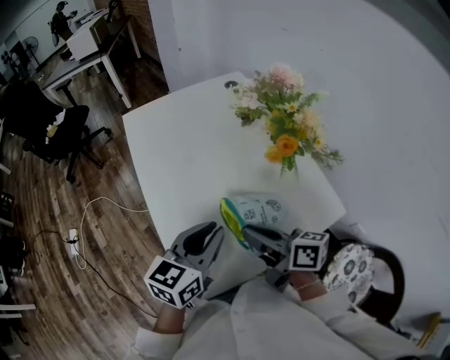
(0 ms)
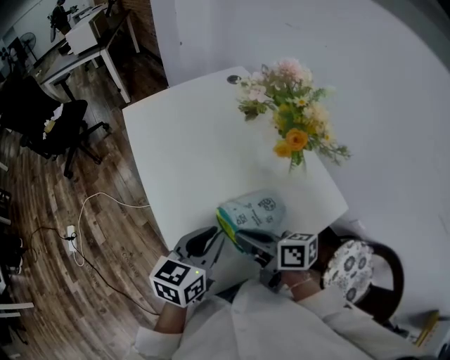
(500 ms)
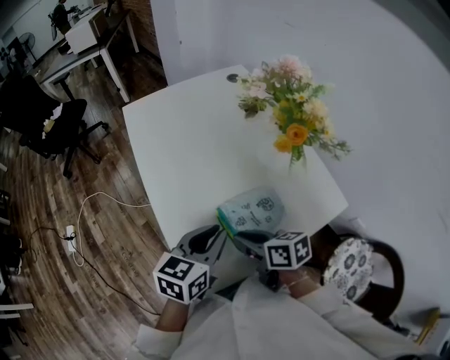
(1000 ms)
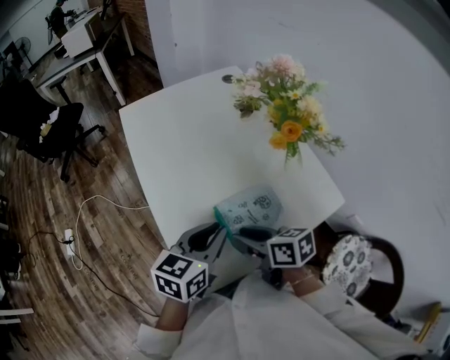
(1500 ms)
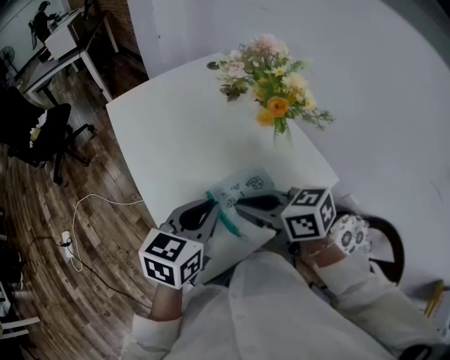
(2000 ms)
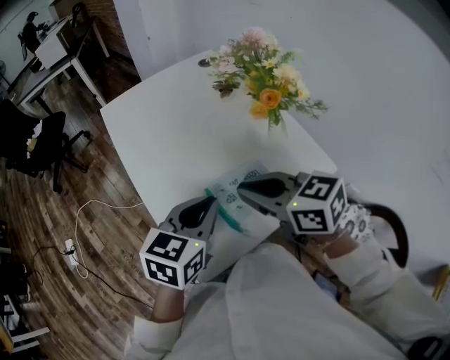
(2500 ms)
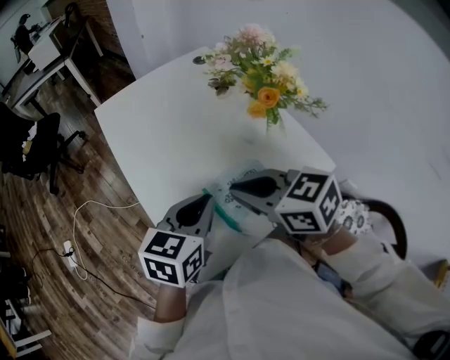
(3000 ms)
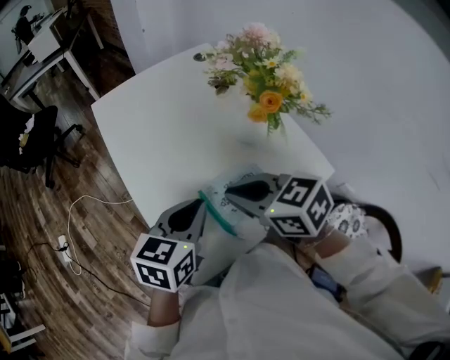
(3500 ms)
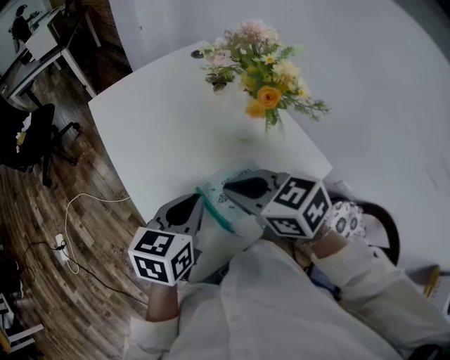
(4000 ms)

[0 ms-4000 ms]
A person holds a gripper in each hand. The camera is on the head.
0 ms to 2000 ms: The right gripper moves approximately 10 cm downward and comes back, and swivels roughly 30 degrees.
2000 ms to 4000 ms: There are only small adjustments of the grippers.

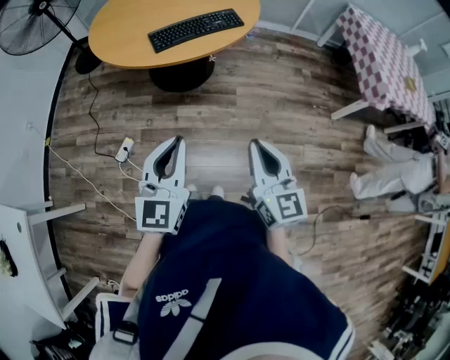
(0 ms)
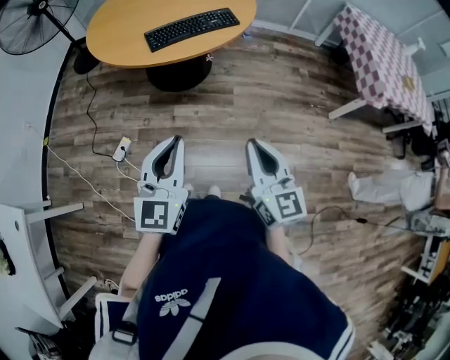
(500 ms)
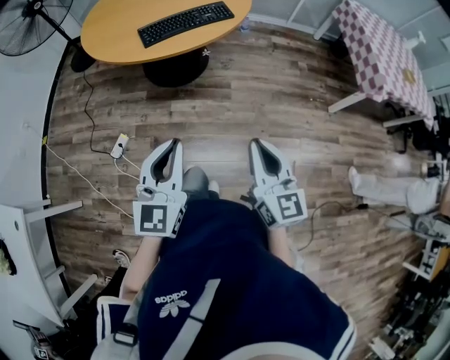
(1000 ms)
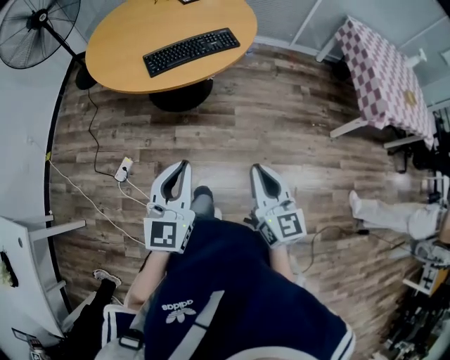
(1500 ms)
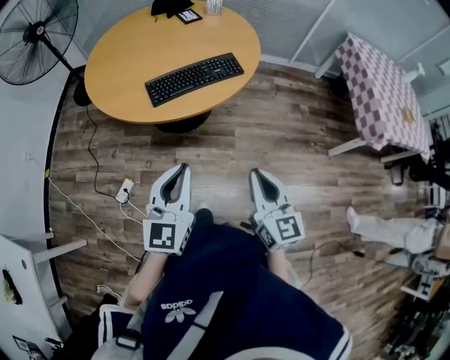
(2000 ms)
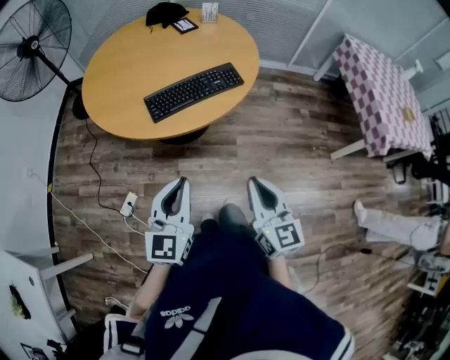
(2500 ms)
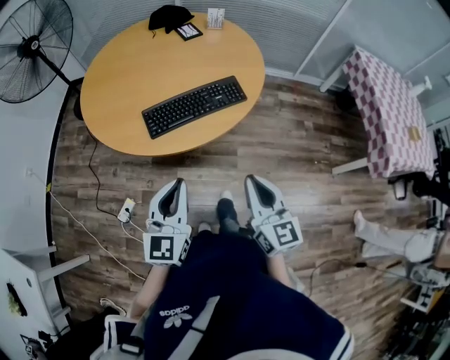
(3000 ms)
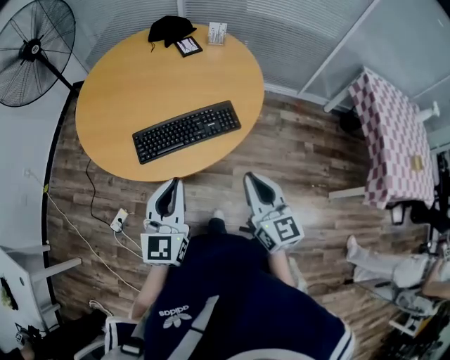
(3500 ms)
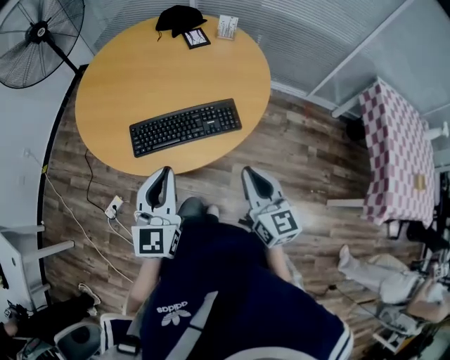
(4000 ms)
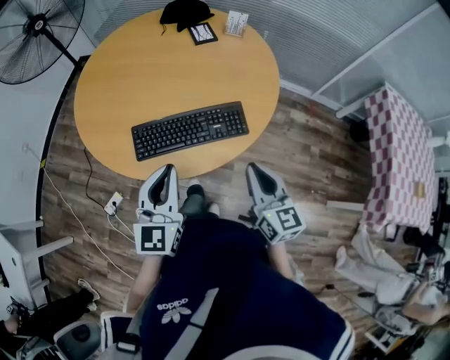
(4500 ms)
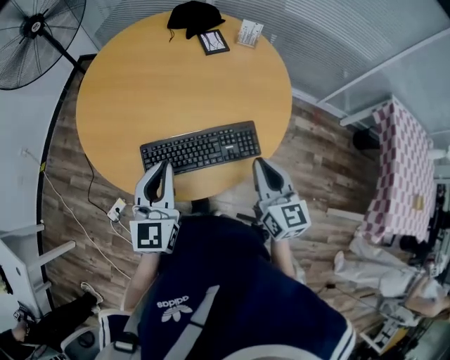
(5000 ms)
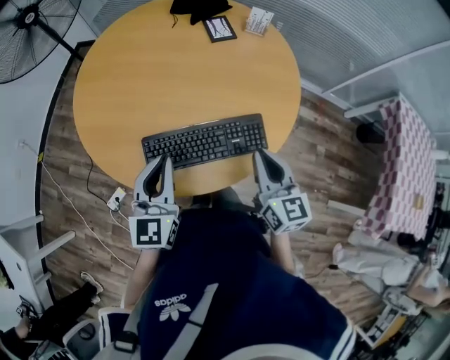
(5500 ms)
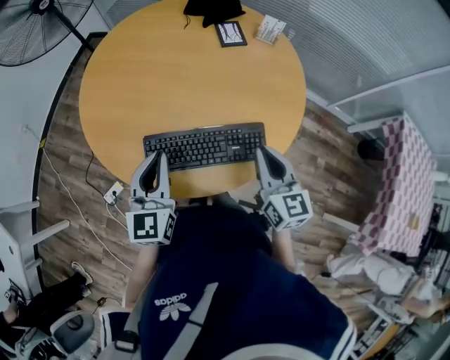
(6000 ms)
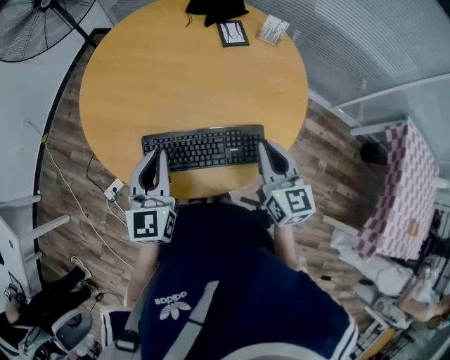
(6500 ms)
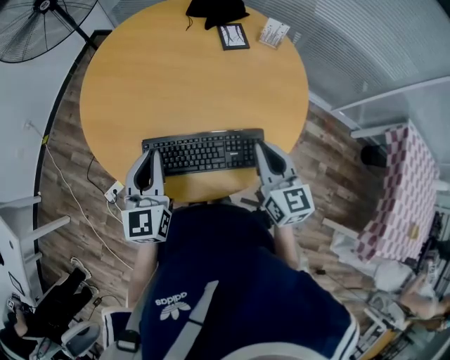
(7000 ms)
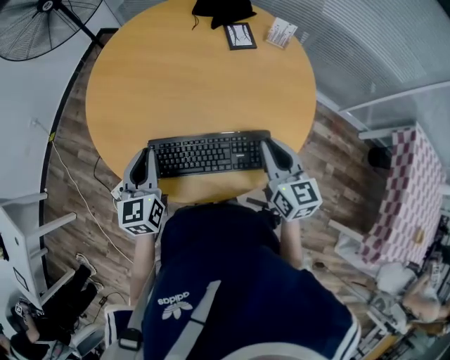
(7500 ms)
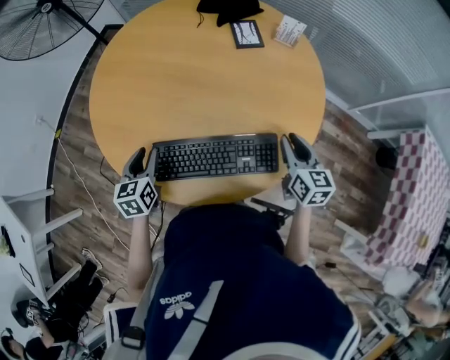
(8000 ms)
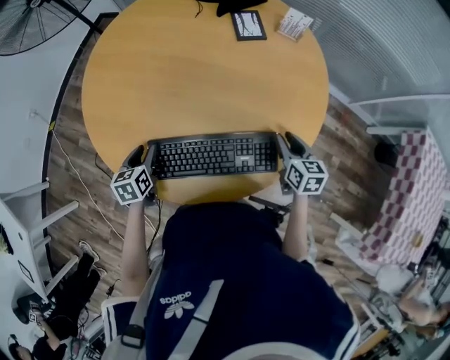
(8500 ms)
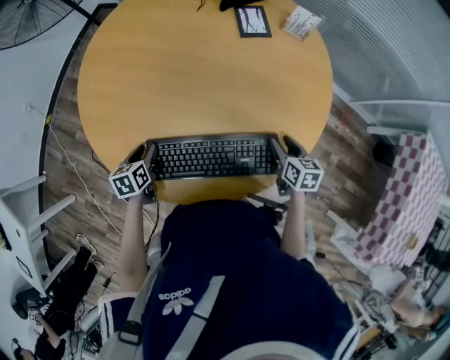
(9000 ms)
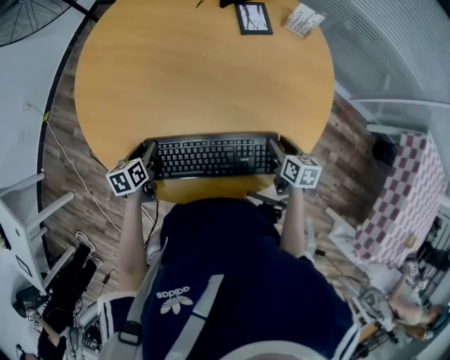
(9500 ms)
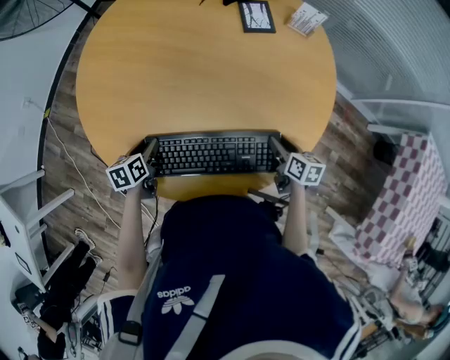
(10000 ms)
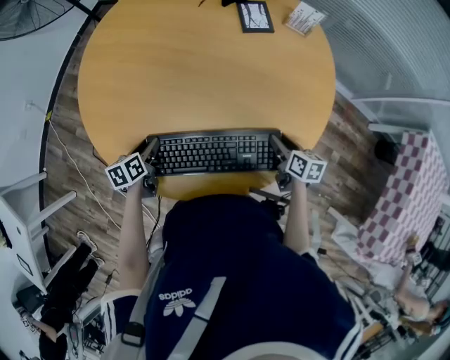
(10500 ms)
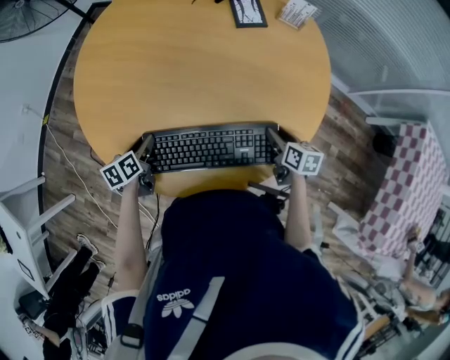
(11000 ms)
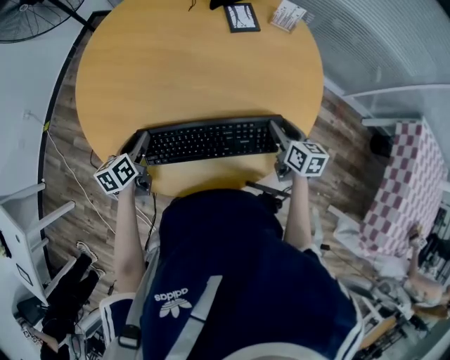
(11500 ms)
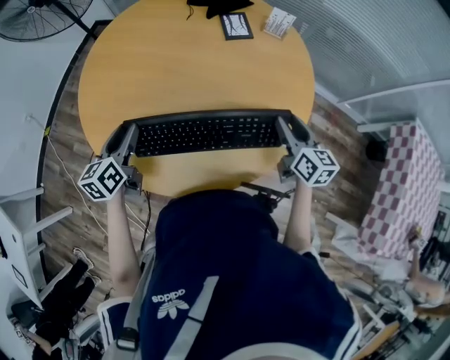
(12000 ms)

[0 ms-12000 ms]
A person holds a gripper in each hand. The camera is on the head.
0 ms to 2000 ms: The two grippers go some 15 cm forward.
2000 ms to 4000 ms: The grippers both shift forward by approximately 30 cm.
4000 ms to 6000 ms: The right gripper heads forward, covering roughly 20 cm; the left gripper goes about 20 cm forward and to the left.
6000 ms to 8000 ms: The left gripper heads downward, to the left and forward, covering some 15 cm, swivels roughly 30 degrees, and opens its fingers, while the right gripper travels to the right, downward and forward by some 15 cm.
8000 ms to 10000 ms: The grippers both shift downward by approximately 15 cm. The left gripper turns by approximately 30 degrees. Meanwhile the right gripper rotates approximately 30 degrees.
10000 ms to 12000 ms: Both grippers move upward, some 20 cm. The left gripper swivels some 30 degrees. The right gripper rotates some 30 degrees.

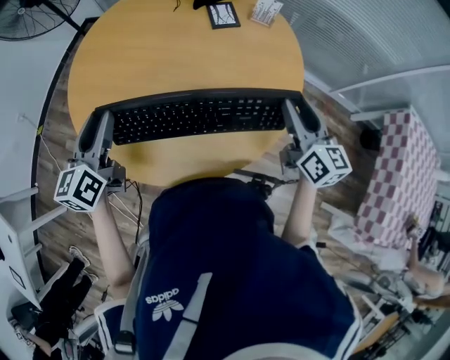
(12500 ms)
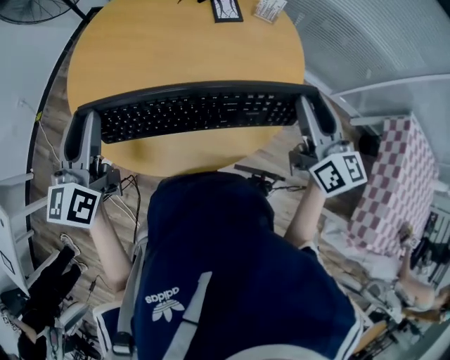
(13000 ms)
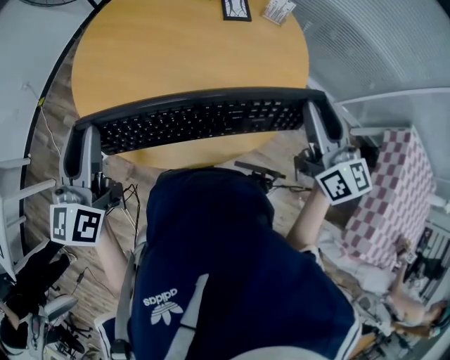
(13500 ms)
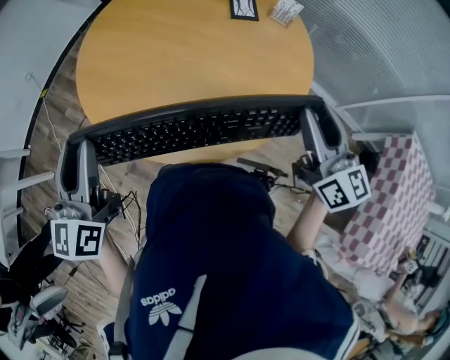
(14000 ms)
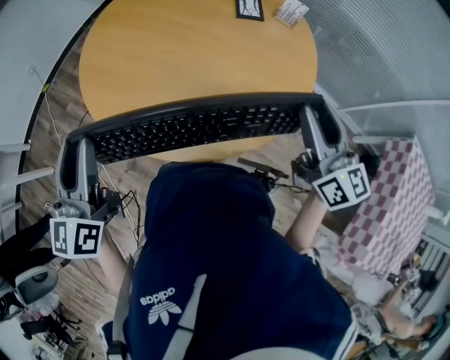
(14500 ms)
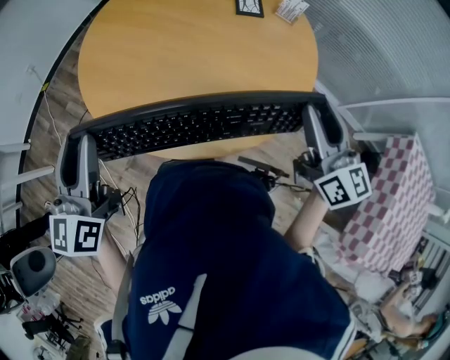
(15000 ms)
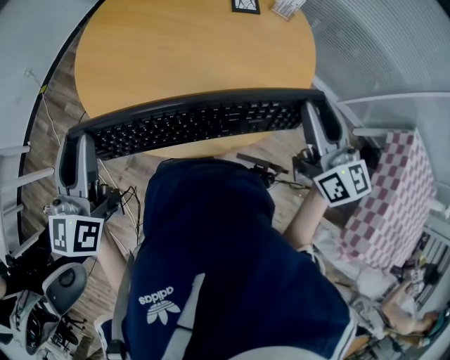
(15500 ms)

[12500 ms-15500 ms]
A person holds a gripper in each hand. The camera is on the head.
12500 ms to 14000 ms: The right gripper shifts roughly 10 cm upward and backward; the left gripper goes roughly 20 cm backward and upward.
14000 ms to 15500 ms: Both grippers stay put.

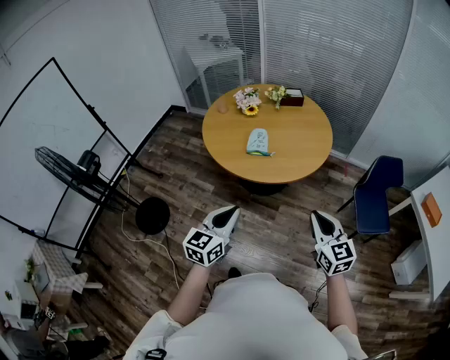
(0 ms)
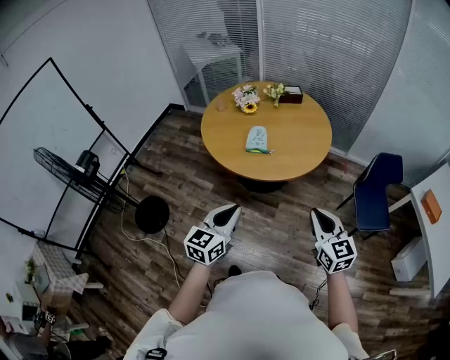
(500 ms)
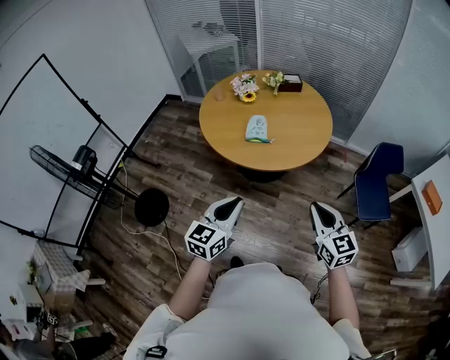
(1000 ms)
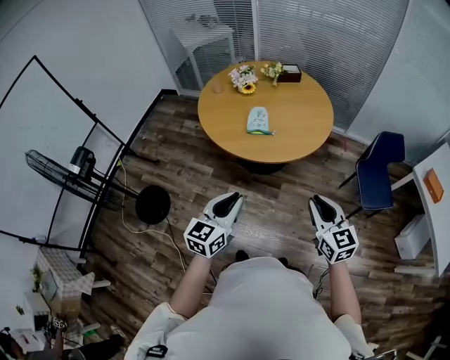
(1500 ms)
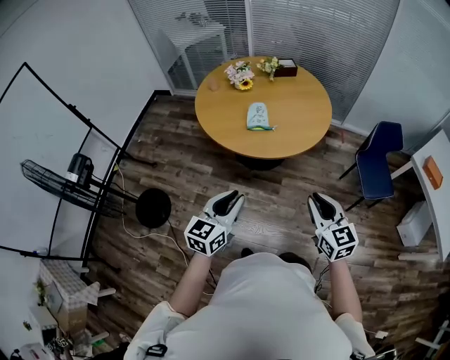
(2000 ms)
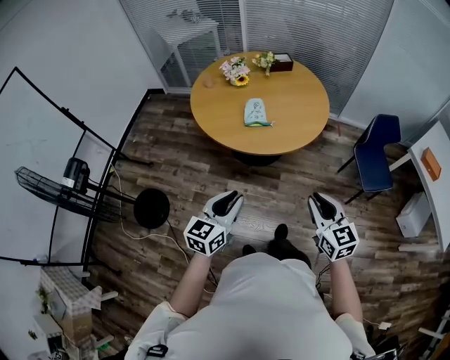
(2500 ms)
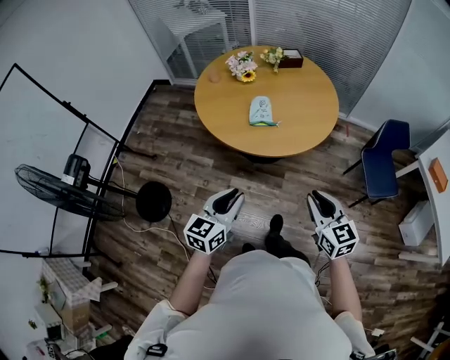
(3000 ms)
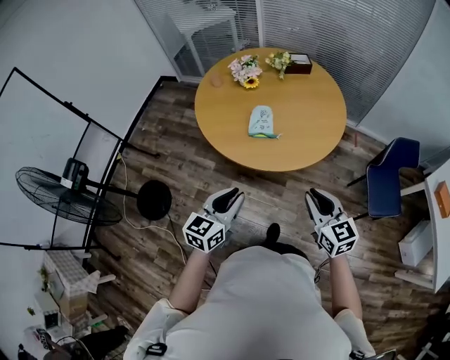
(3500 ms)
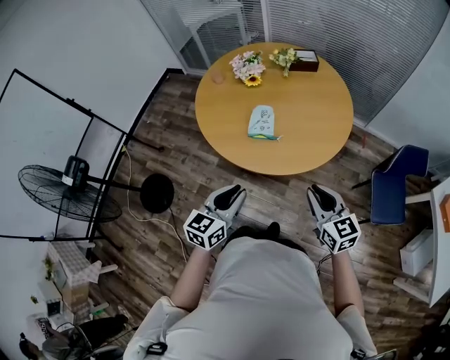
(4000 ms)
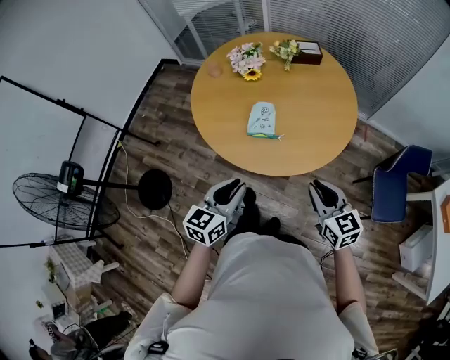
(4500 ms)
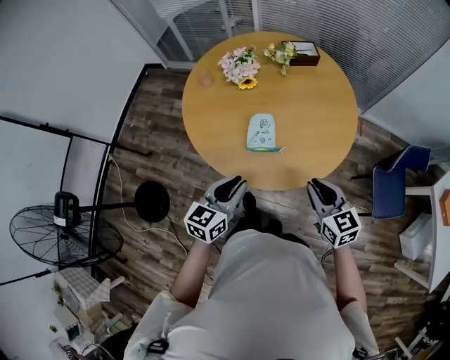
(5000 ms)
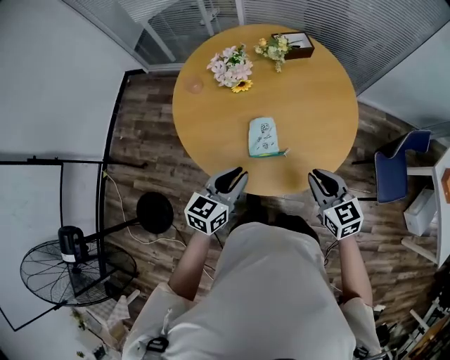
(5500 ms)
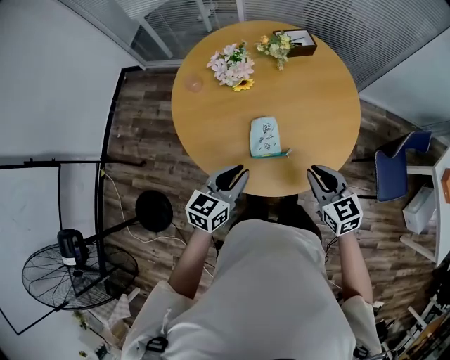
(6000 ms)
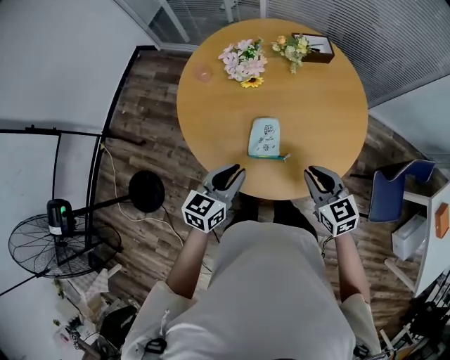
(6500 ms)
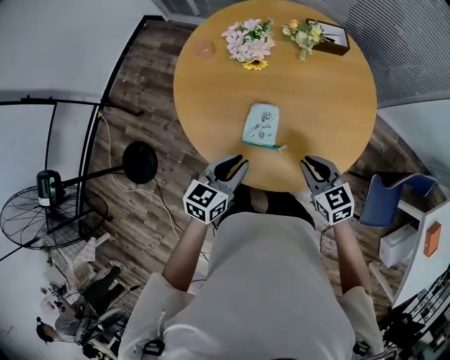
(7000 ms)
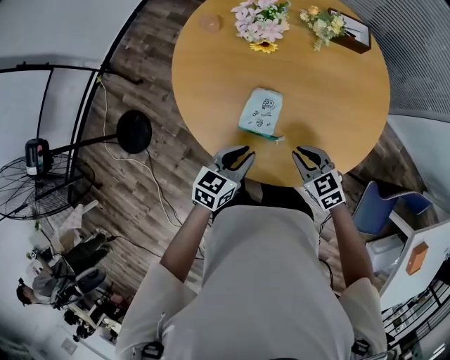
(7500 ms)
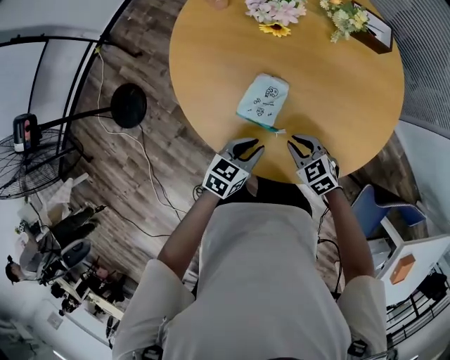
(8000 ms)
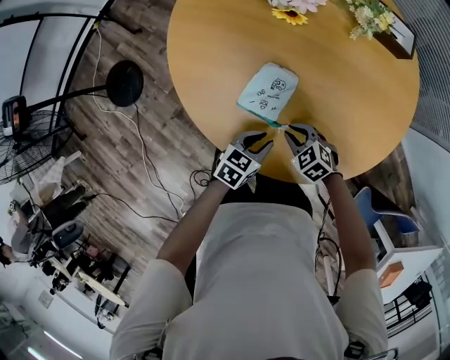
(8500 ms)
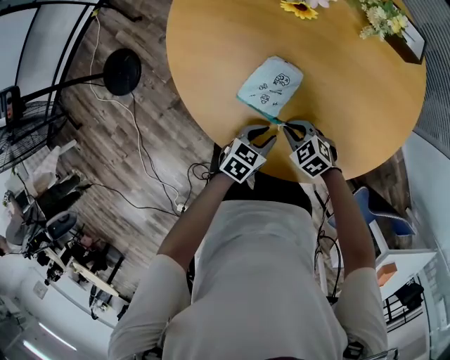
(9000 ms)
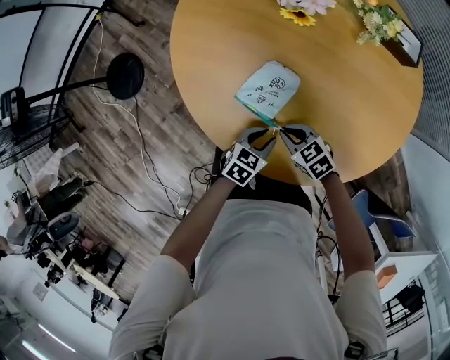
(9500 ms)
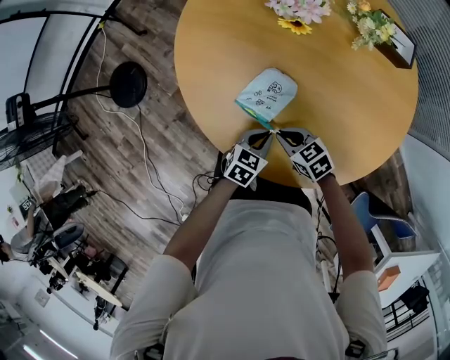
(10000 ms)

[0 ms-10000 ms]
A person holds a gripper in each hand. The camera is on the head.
0 ms to 2000 ms: Both grippers travel together to the left, about 10 cm.
2000 ms to 4000 ms: The grippers both shift forward by about 25 cm.
4000 ms to 6000 ms: The right gripper shifts roughly 25 cm forward and to the left; the left gripper moves forward, about 30 cm.
6000 ms to 8000 ms: Both grippers travel together downward, roughly 25 cm. The right gripper swivels about 50 degrees. Meanwhile the left gripper swivels approximately 30 degrees.
8000 ms to 10000 ms: The right gripper ends up about 5 cm from where it was; the left gripper goes approximately 10 cm downward.
